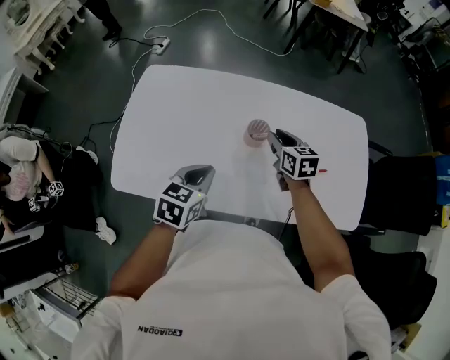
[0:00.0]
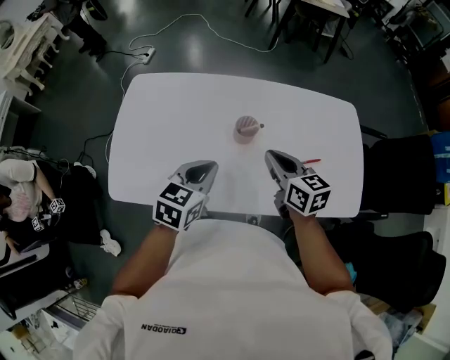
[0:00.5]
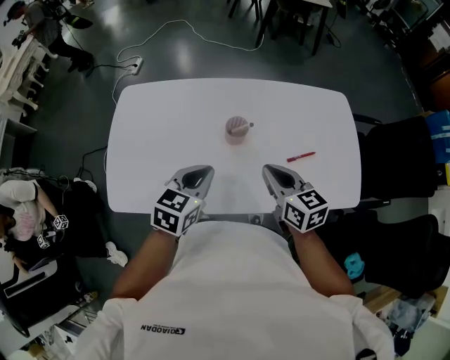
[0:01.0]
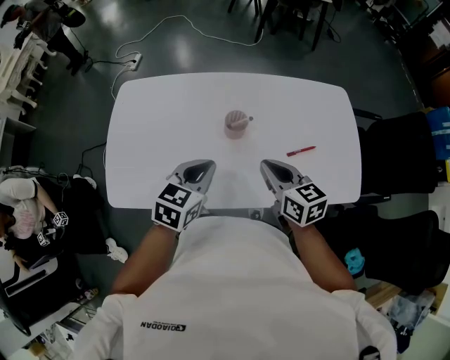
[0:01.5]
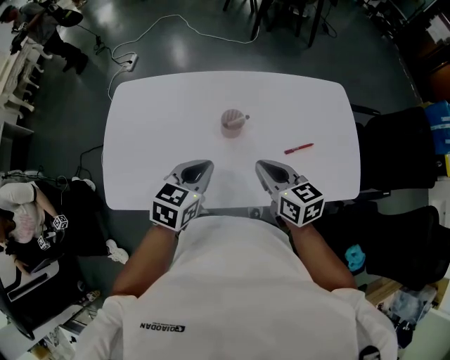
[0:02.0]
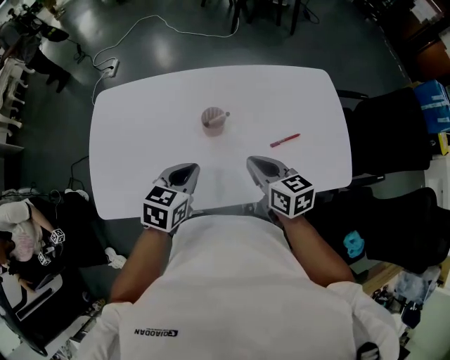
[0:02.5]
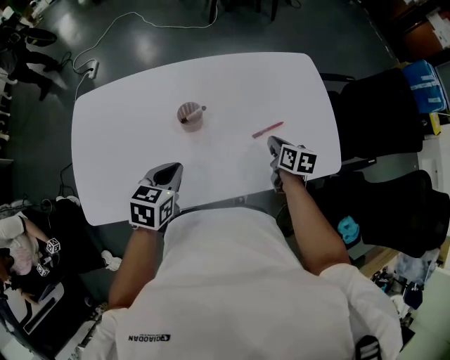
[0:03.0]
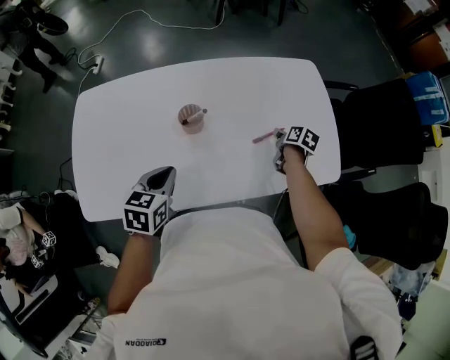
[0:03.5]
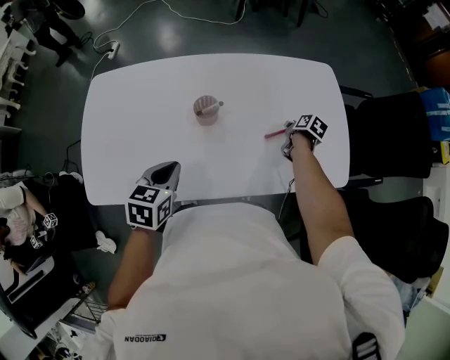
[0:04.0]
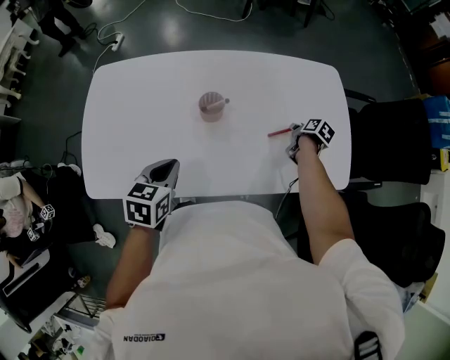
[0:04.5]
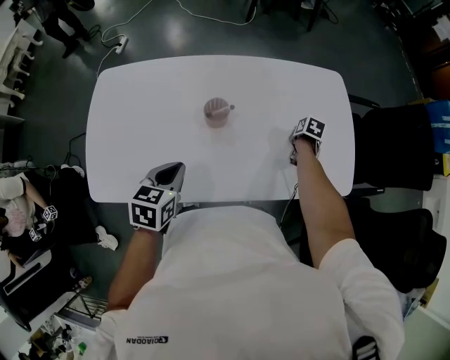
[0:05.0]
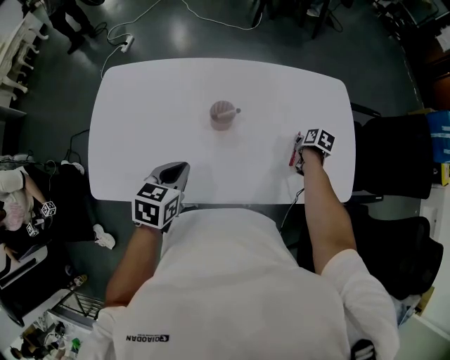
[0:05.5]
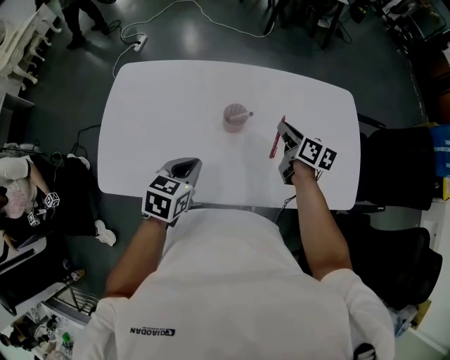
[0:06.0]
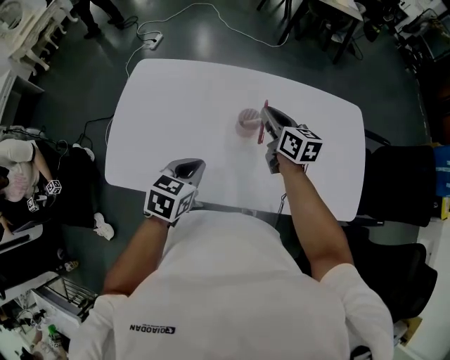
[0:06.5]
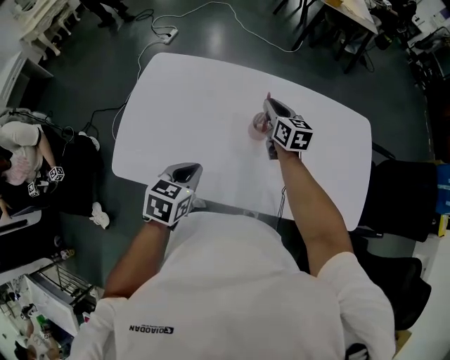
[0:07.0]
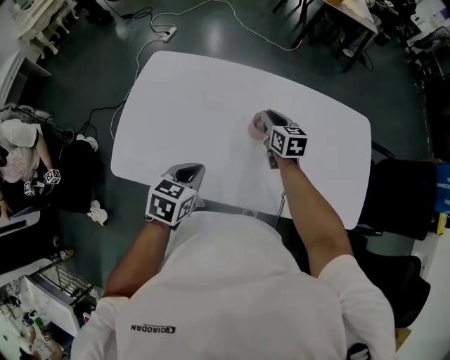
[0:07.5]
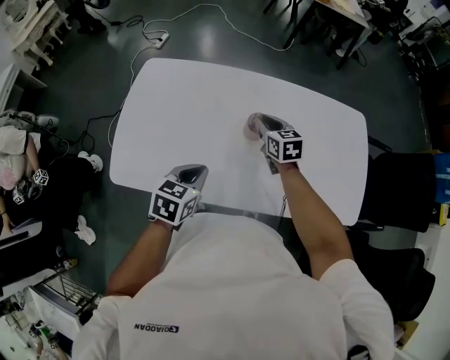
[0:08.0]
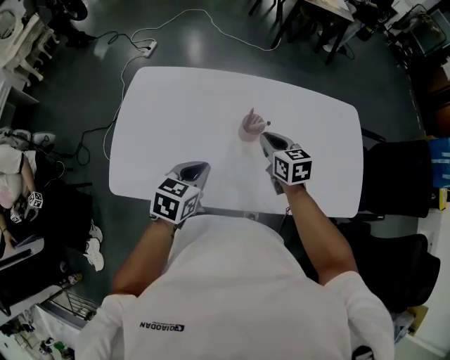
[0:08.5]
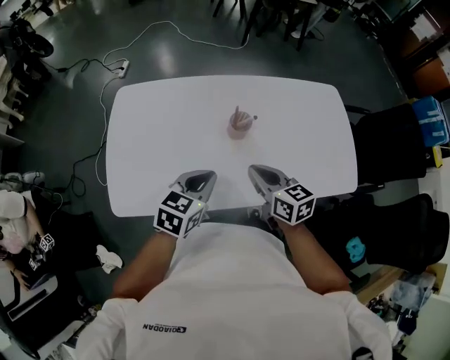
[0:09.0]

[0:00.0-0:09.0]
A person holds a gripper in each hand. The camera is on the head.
0:00.0 to 0:02.0: The right gripper heads backward and upward, covering roughly 15 cm, and closes its fingers; the left gripper travels to the right by roughly 5 cm.
0:02.0 to 0:04.5: The left gripper shifts approximately 5 cm downward, while the right gripper shifts about 40 cm to the right, downward and forward, tips its fingers downward by approximately 30 degrees, and opens.
0:04.5 to 0:07.0: The right gripper shifts about 40 cm to the left and upward, and angles its fingers upward, by roughly 40 degrees. Meanwhile the left gripper is displaced to the left by roughly 5 cm.
0:07.0 to 0:09.0: The left gripper turns by roughly 20 degrees. Meanwhile the right gripper goes about 25 cm backward.

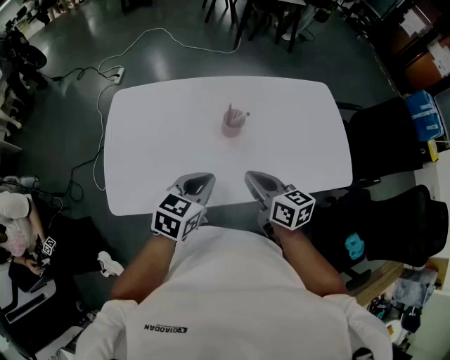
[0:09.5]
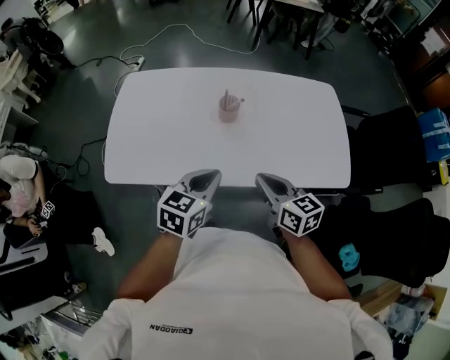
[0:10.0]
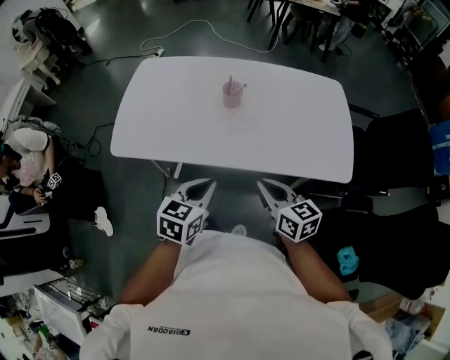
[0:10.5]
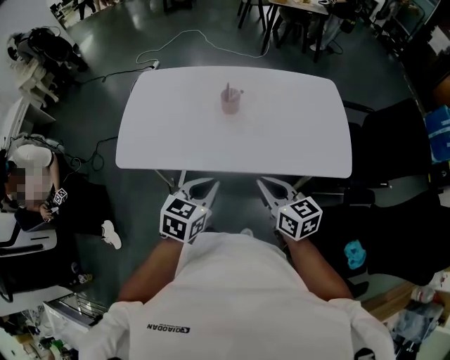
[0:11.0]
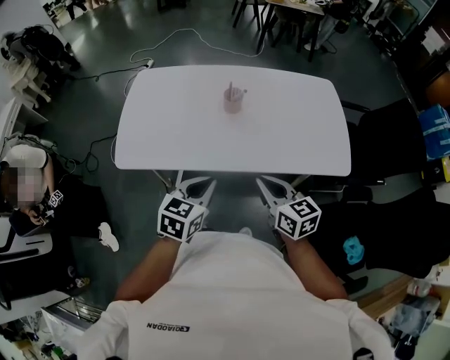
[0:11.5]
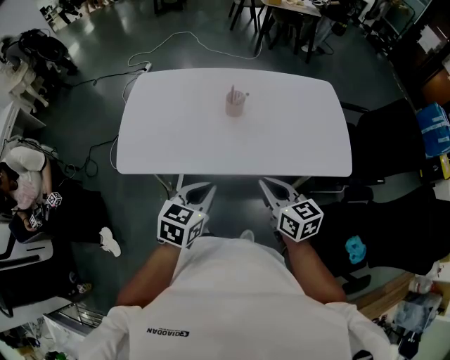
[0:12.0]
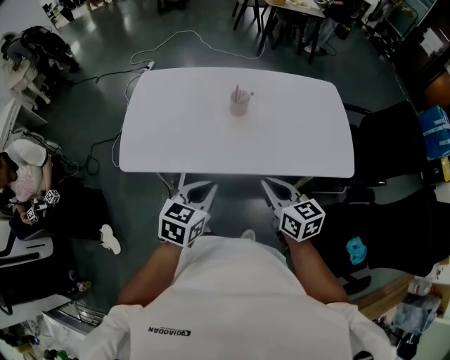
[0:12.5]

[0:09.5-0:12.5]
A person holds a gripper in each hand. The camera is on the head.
0:09.5 to 0:11.0: The grippers both shift backward and to the right by some 20 cm.
0:11.0 to 0:12.5: The left gripper goes some 5 cm to the left.

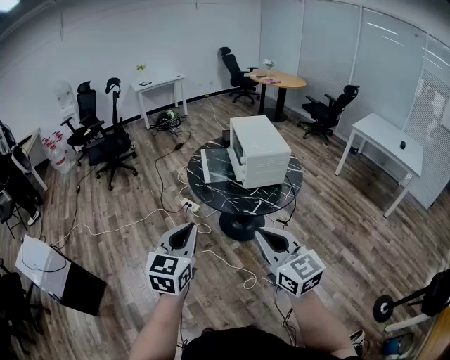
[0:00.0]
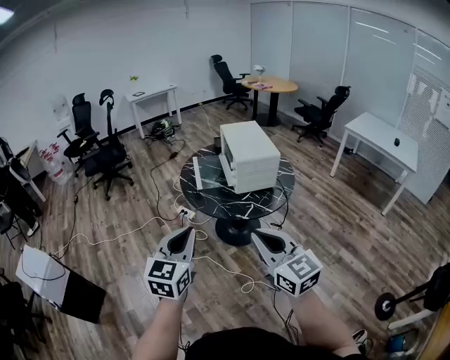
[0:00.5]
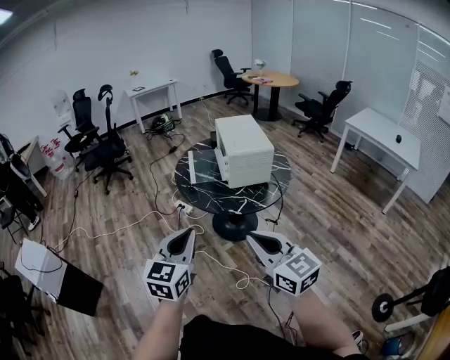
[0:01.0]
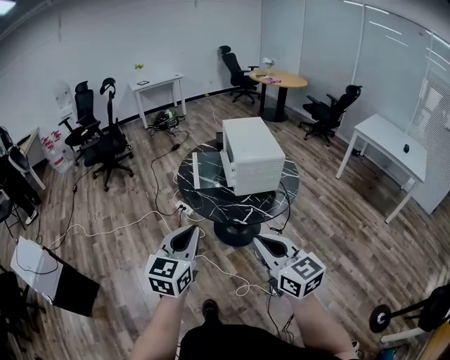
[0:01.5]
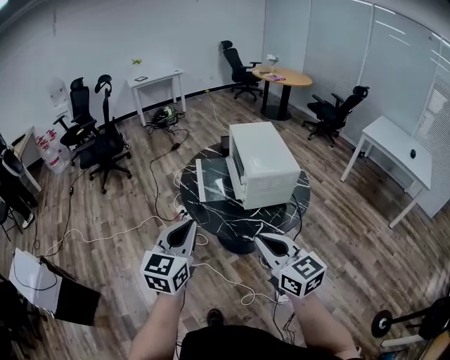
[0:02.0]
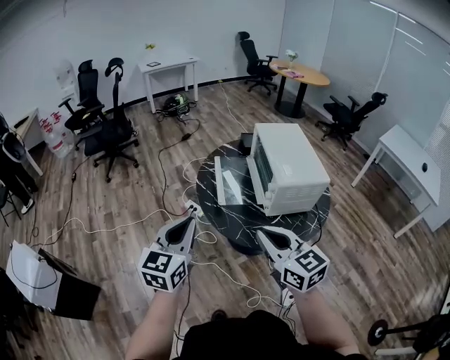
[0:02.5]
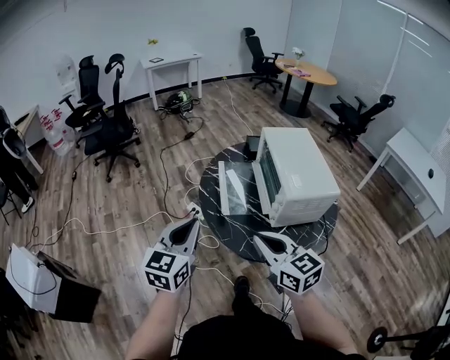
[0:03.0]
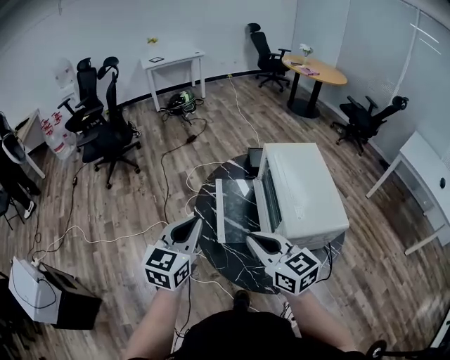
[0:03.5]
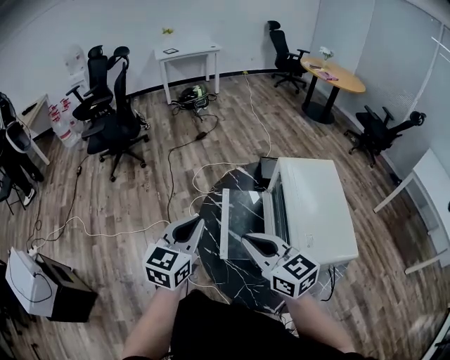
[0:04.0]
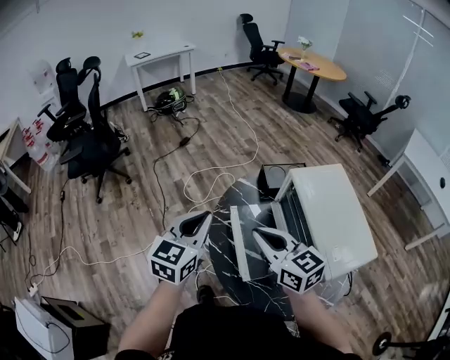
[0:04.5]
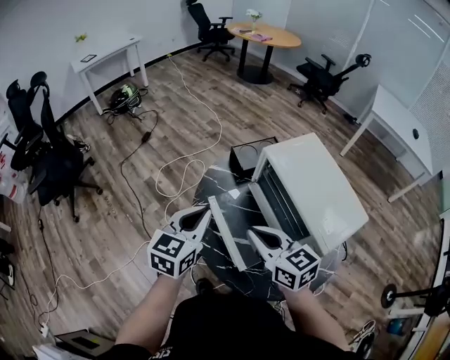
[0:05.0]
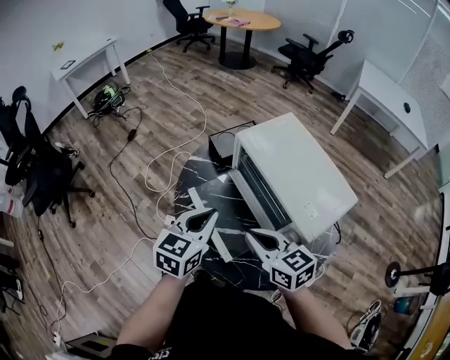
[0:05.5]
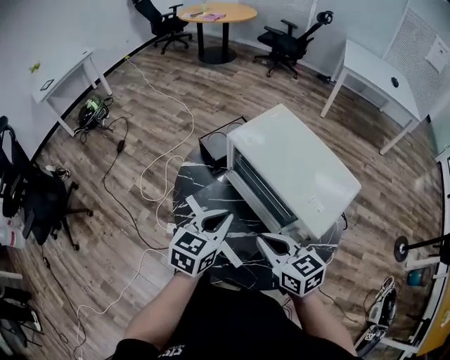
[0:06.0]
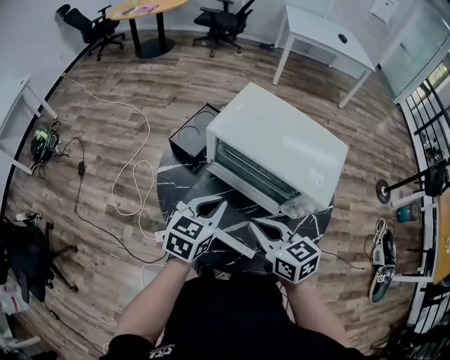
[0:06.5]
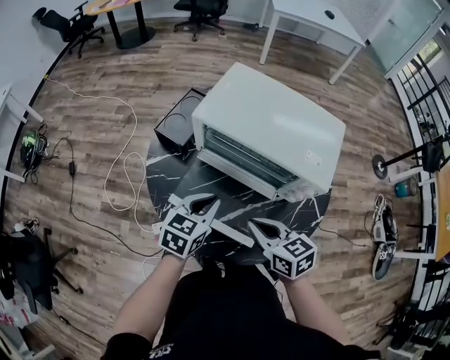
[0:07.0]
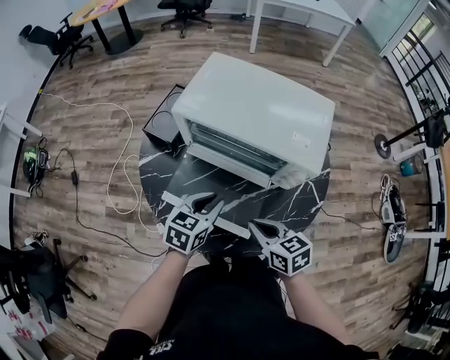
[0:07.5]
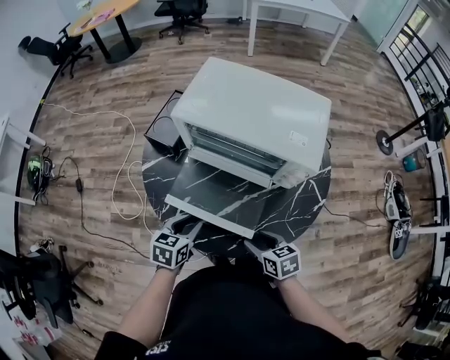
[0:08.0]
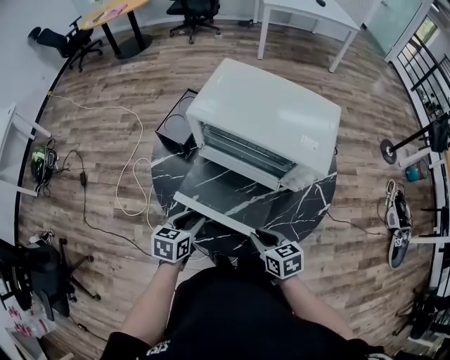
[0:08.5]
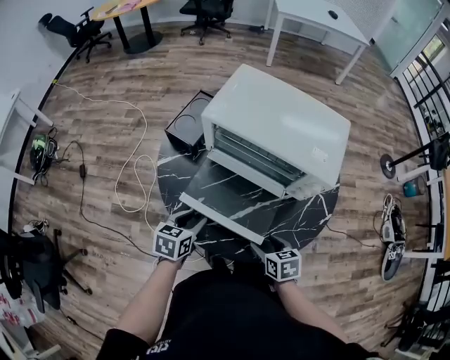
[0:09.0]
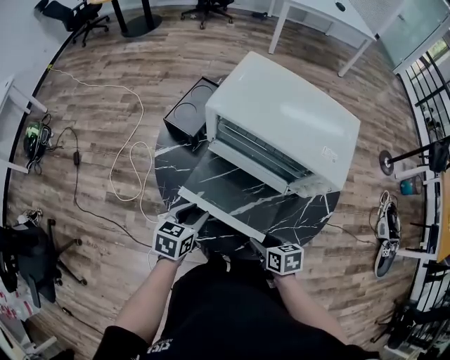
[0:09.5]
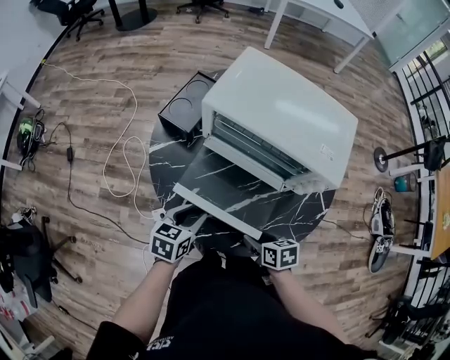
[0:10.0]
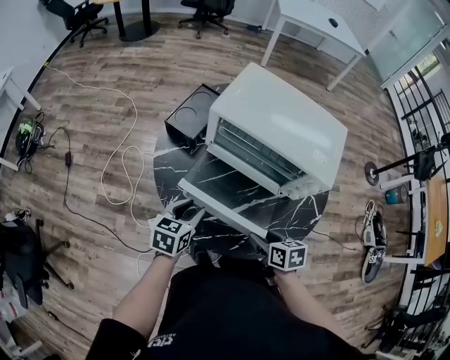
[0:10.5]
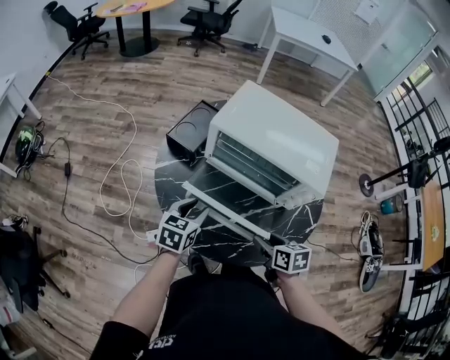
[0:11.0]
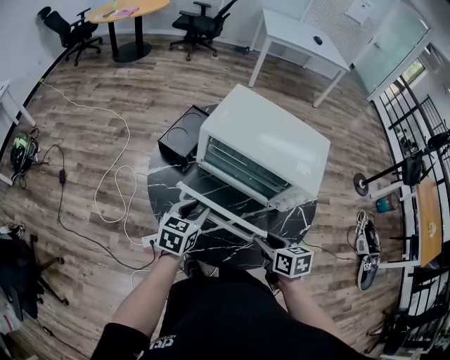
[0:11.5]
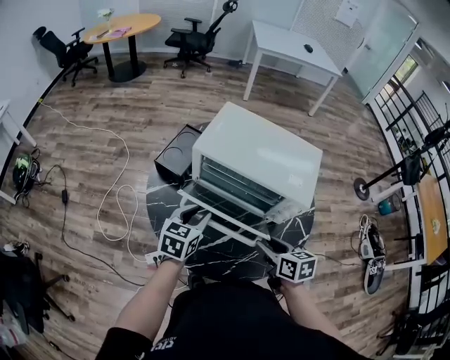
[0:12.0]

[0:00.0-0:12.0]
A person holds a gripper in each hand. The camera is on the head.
0:00.0 to 0:02.0: Both grippers travel together forward, roughly 15 cm.
0:02.0 to 0:04.0: The two grippers go about 40 cm forward.
0:04.0 to 0:06.0: The right gripper goes roughly 10 cm downward, and swivels about 50 degrees, while the left gripper changes place by roughly 20 cm, and changes its angle by roughly 50 degrees.
0:06.0 to 0:08.0: Both grippers travel together downward, some 20 cm. The left gripper swivels some 30 degrees, and opens. Meanwhile the right gripper turns by roughly 40 degrees, and opens up.
0:08.0 to 0:10.0: The right gripper closes, then reopens.
0:10.0 to 0:12.0: The grippers both shift upward and forward by about 15 cm. The right gripper changes its angle by approximately 20 degrees.

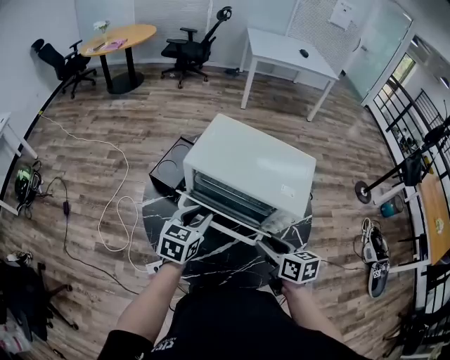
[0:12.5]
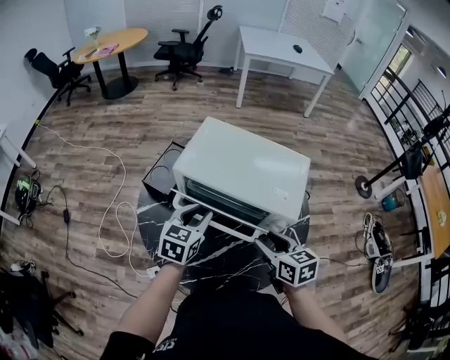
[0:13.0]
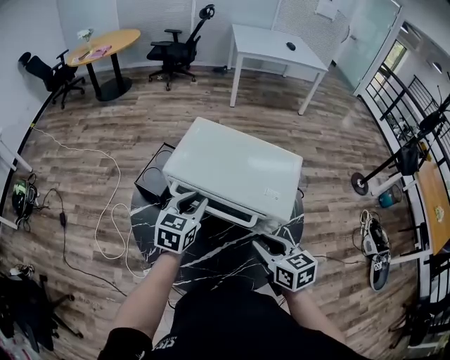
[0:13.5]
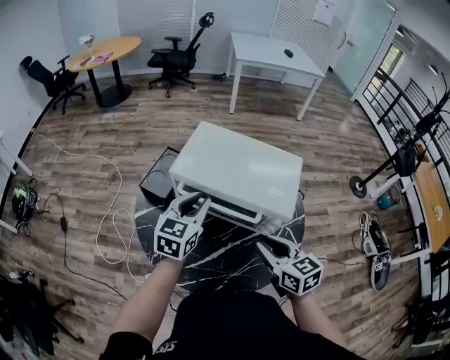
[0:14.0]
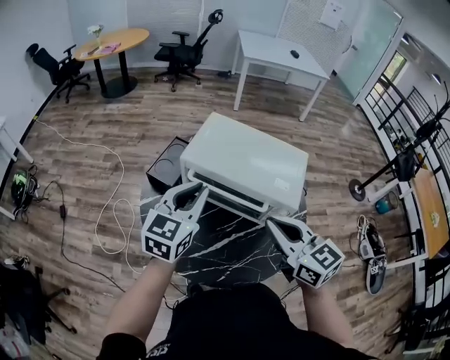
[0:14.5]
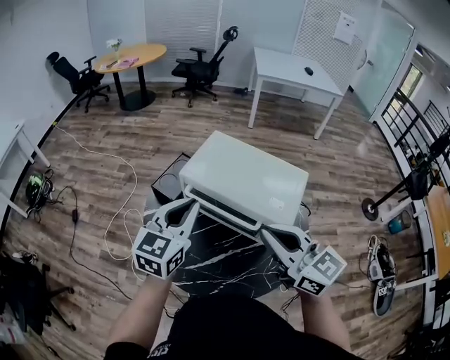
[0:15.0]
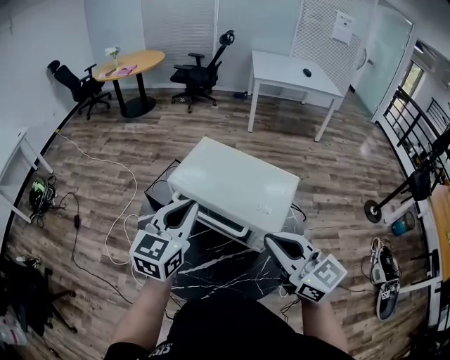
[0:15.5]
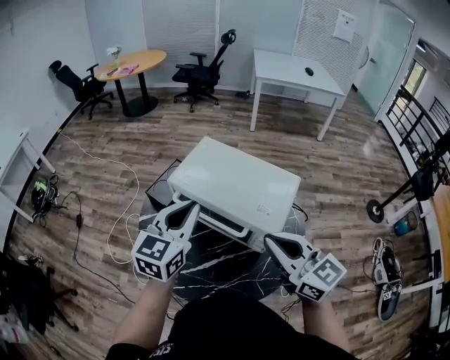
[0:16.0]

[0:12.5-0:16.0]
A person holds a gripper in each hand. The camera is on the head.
0:12.5 to 0:14.5: The grippers both shift upward by some 15 cm. The right gripper turns by roughly 30 degrees, and closes; the left gripper closes.
0:14.5 to 0:16.0: Both grippers move to the right, about 5 cm.
